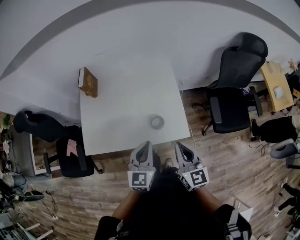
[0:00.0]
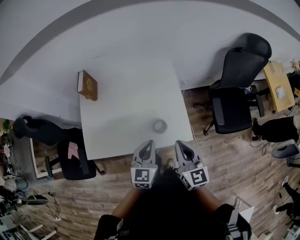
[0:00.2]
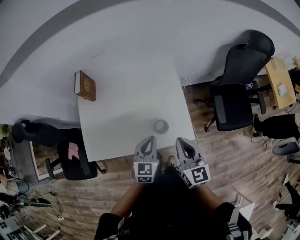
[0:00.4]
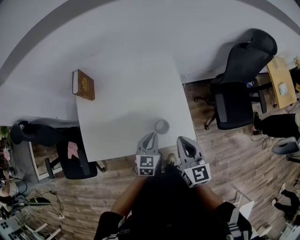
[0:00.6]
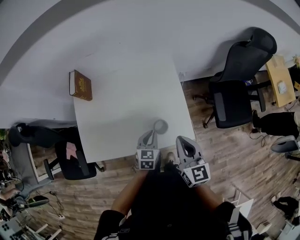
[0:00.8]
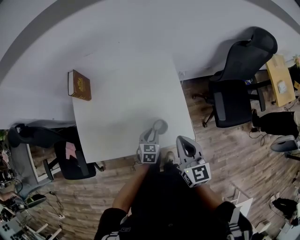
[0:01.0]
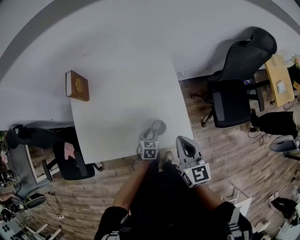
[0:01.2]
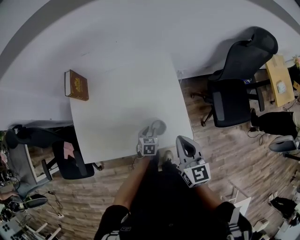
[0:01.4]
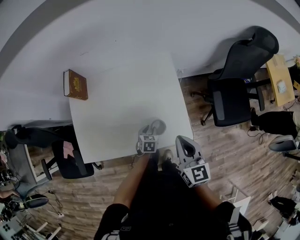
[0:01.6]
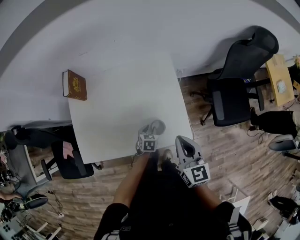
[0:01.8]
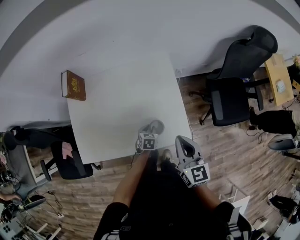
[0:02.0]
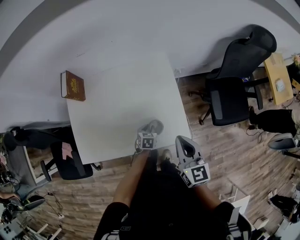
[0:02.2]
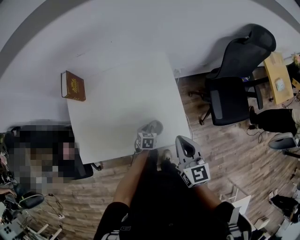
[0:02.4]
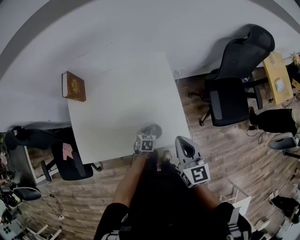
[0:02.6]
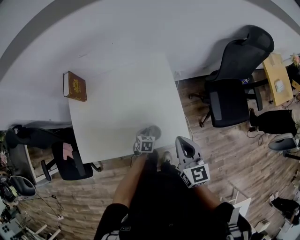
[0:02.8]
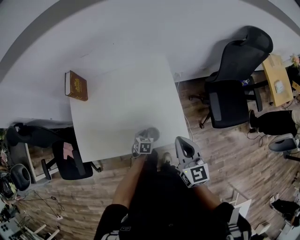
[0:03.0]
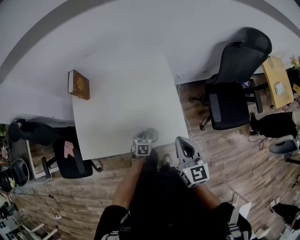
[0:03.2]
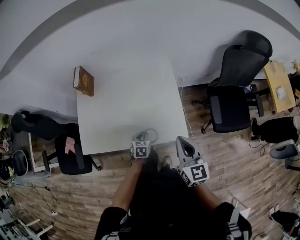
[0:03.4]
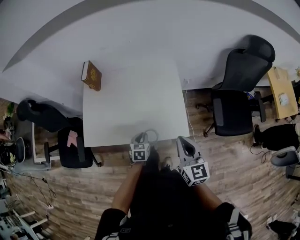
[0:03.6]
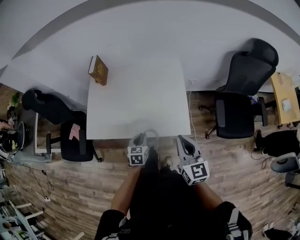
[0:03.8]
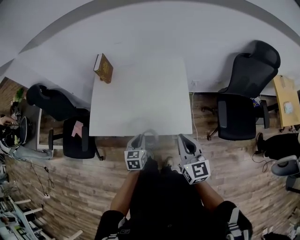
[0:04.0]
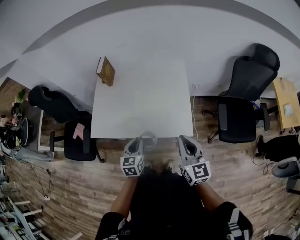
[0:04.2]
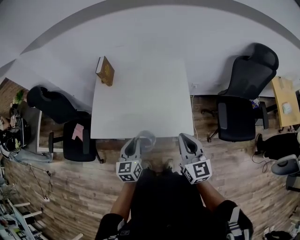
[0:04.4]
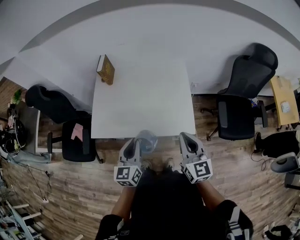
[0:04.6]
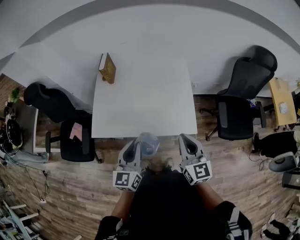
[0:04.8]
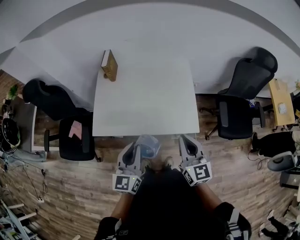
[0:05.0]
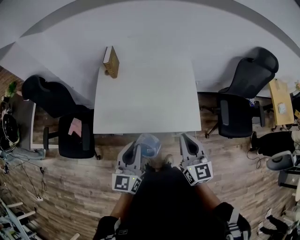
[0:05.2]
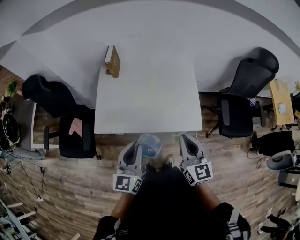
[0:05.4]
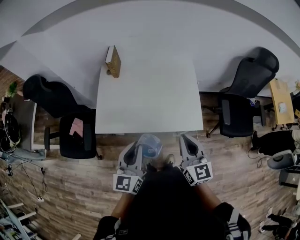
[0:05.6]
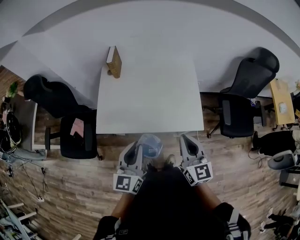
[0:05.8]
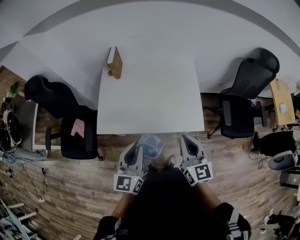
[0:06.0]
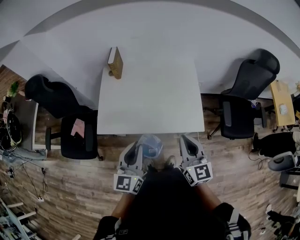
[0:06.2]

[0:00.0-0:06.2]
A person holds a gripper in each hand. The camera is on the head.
0:00.0 to 0:01.6: The left gripper is displaced downward and forward by some 35 cm, tips its fingers downward by roughly 40 degrees, and opens. The right gripper is displaced forward by about 10 cm.
0:01.6 to 0:03.2: The right gripper shifts by roughly 5 cm.
0:03.2 to 0:04.6: The left gripper travels upward and backward by roughly 35 cm, and tips its fingers upward by about 40 degrees; the right gripper travels backward and upward by some 10 cm.
0:04.6 to 0:06.2: Both grippers move to the left, roughly 10 cm.

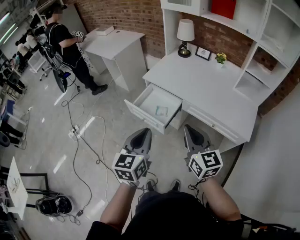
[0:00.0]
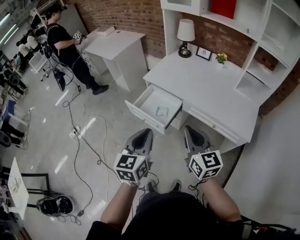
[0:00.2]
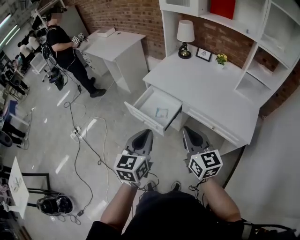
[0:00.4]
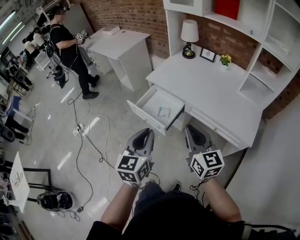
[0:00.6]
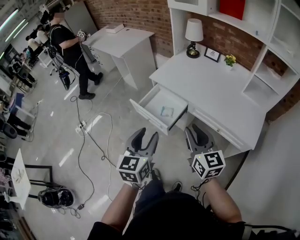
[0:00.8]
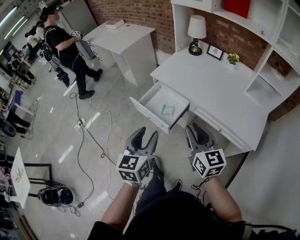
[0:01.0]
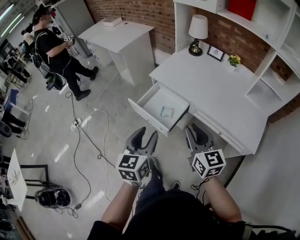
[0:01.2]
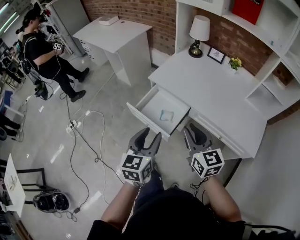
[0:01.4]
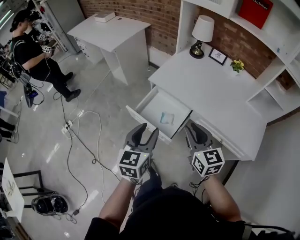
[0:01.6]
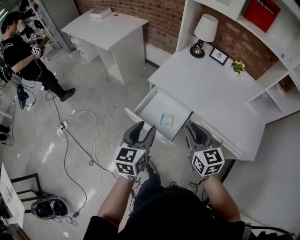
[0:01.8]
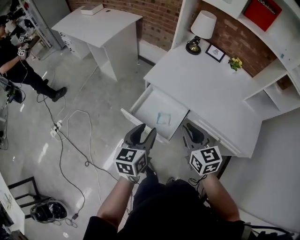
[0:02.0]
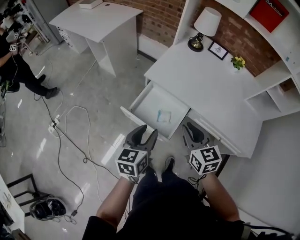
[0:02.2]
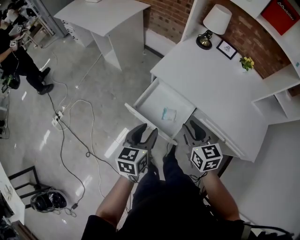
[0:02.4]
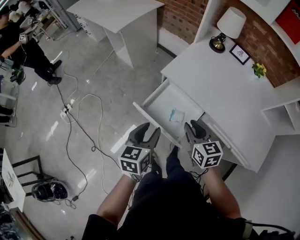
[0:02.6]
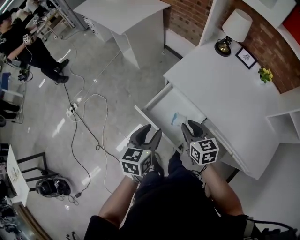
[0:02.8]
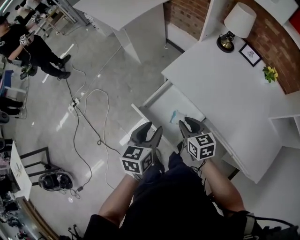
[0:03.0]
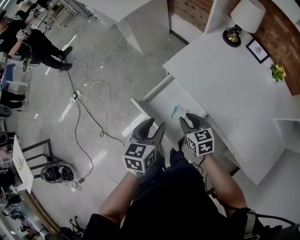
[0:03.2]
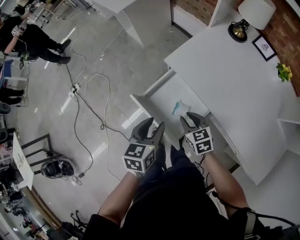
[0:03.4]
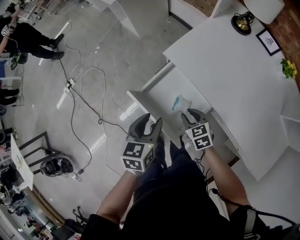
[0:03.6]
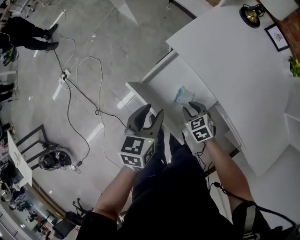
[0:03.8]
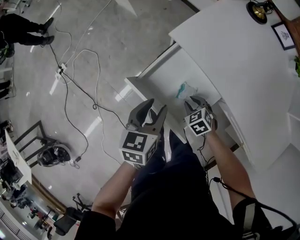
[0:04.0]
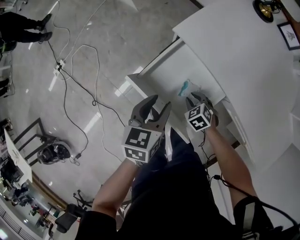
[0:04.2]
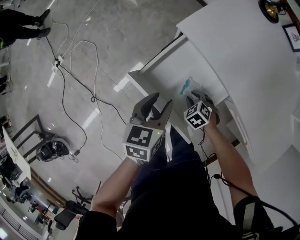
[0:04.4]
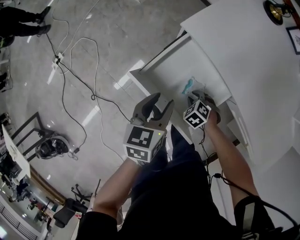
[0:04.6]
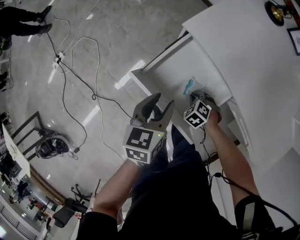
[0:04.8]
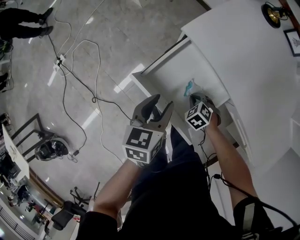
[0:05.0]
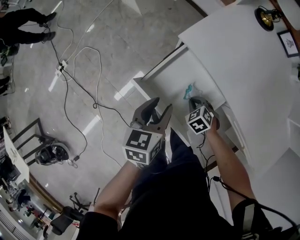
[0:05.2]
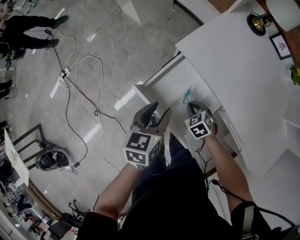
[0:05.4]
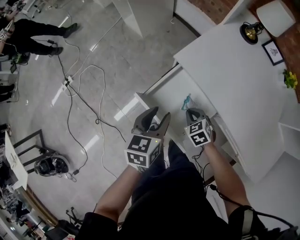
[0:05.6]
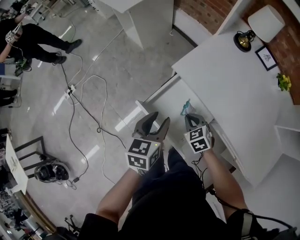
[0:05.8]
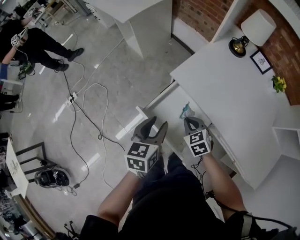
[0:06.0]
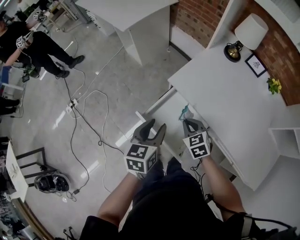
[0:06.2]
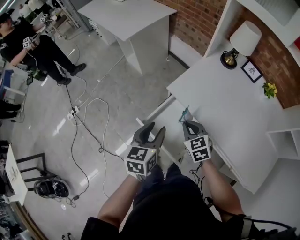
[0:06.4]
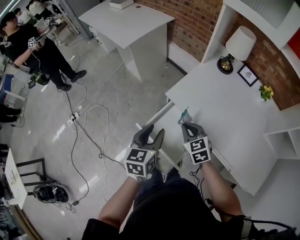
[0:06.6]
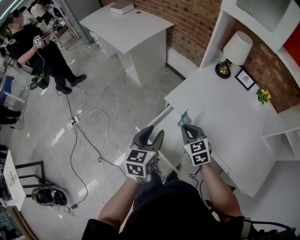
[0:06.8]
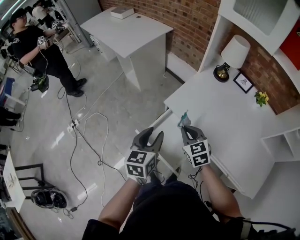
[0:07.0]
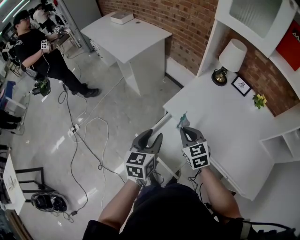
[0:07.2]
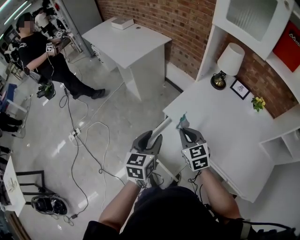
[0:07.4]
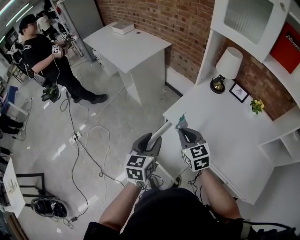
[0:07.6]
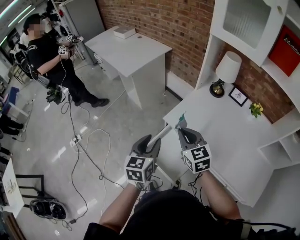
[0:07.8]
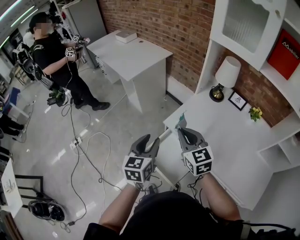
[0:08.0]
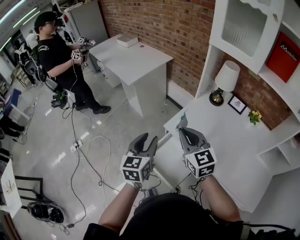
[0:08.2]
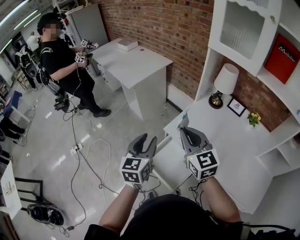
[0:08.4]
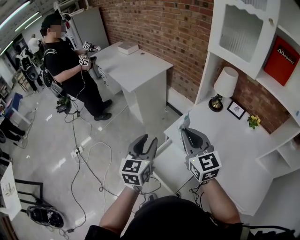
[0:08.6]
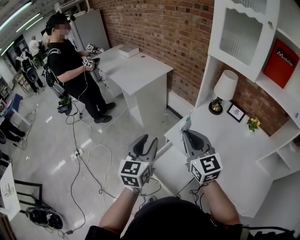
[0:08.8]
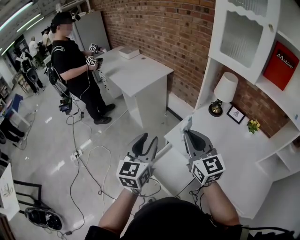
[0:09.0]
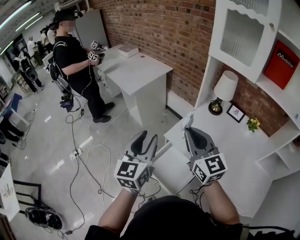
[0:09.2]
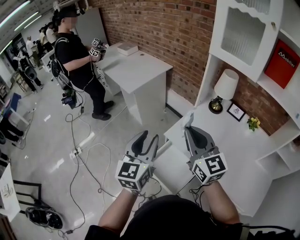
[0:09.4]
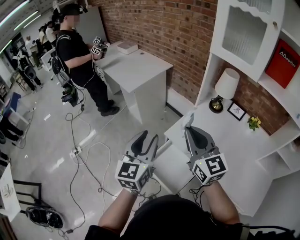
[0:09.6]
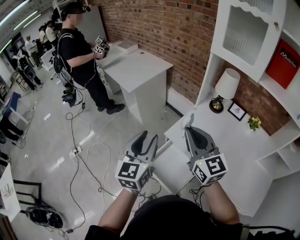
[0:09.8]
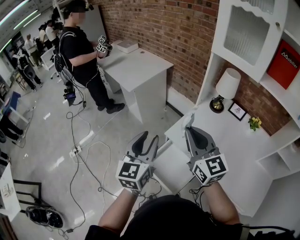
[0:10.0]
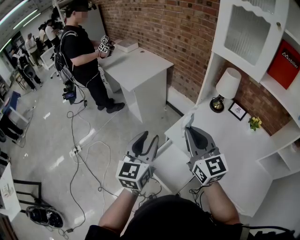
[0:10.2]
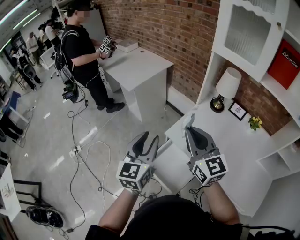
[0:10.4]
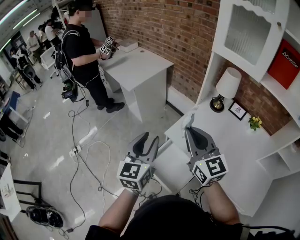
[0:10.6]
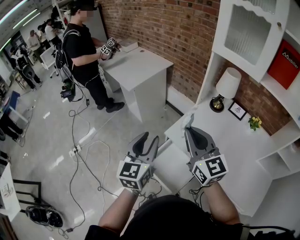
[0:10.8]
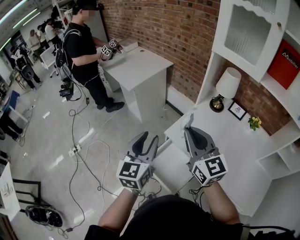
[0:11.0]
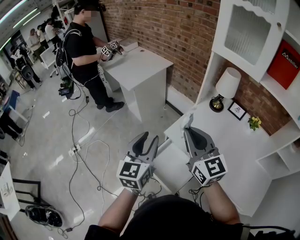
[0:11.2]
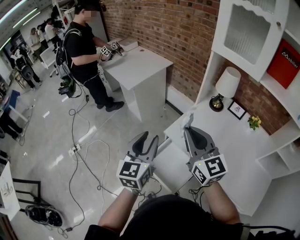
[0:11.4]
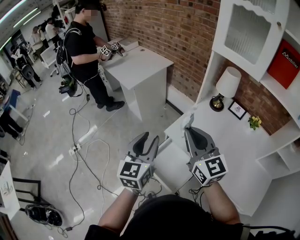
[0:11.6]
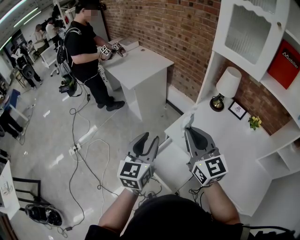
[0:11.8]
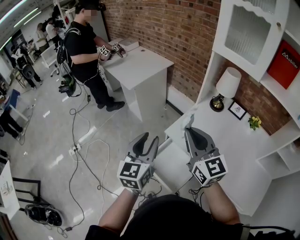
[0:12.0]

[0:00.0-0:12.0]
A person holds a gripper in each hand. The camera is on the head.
0:00.0 to 0:01.6: The grippers both shift forward by some 20 cm. The right gripper opens up, while the left gripper opens up.
0:01.6 to 0:03.0: Both grippers travel together forward and downward, approximately 20 cm. The right gripper changes its angle by some 30 degrees; the left gripper swivels roughly 20 degrees.
0:03.0 to 0:04.4: The left gripper moves downward, about 15 cm; the right gripper goes some 30 cm downward, and tilts its fingers roughly 40 degrees downward.
0:04.4 to 0:06.0: The left gripper shifts some 15 cm upward. The right gripper shifts approximately 25 cm upward, turns by roughly 30 degrees, and closes.
0:06.0 to 0:07.6: The right gripper shifts roughly 20 cm upward, and turns by roughly 30 degrees. Meanwhile the left gripper goes approximately 10 cm upward.
0:07.6 to 0:09.0: The grippers both shift upward by approximately 15 cm. The right gripper changes its angle by approximately 20 degrees.
0:09.0 to 0:12.0: The grippers stay close to where they were, moving slightly.

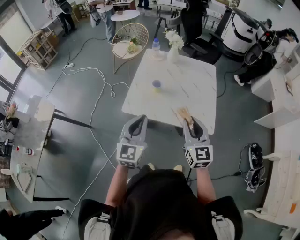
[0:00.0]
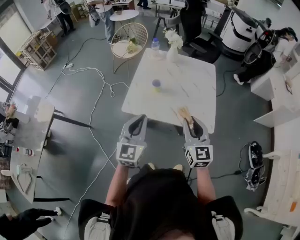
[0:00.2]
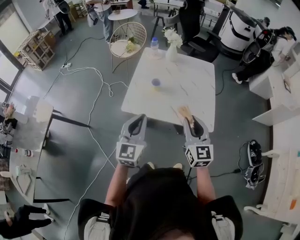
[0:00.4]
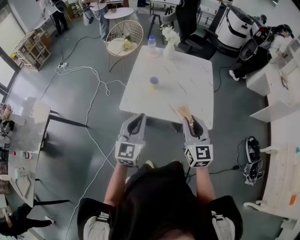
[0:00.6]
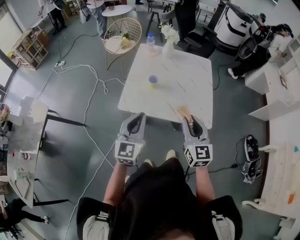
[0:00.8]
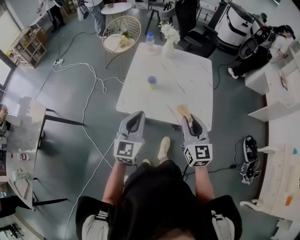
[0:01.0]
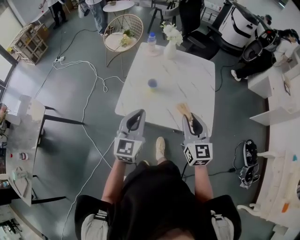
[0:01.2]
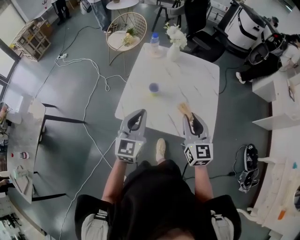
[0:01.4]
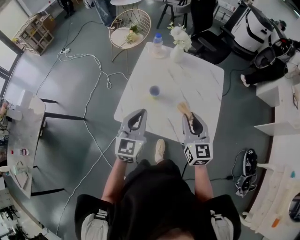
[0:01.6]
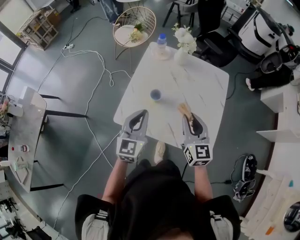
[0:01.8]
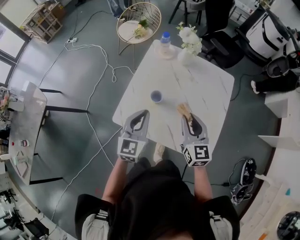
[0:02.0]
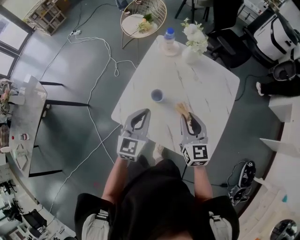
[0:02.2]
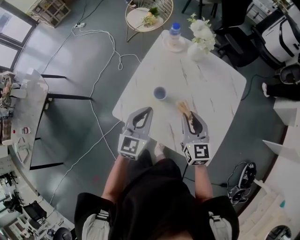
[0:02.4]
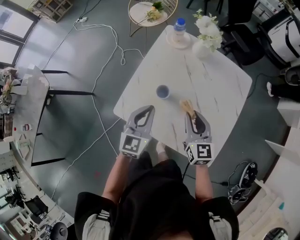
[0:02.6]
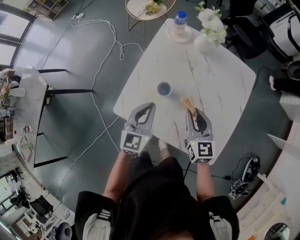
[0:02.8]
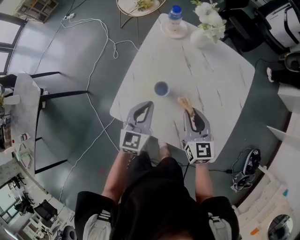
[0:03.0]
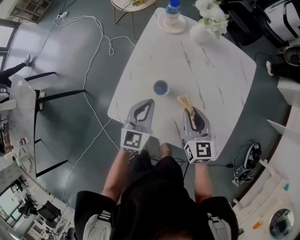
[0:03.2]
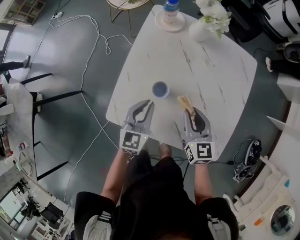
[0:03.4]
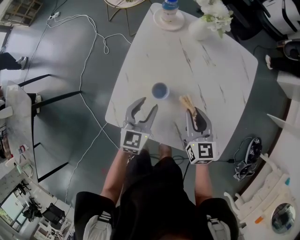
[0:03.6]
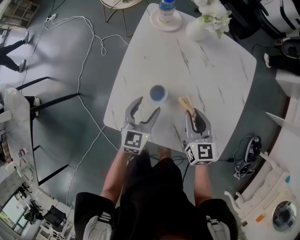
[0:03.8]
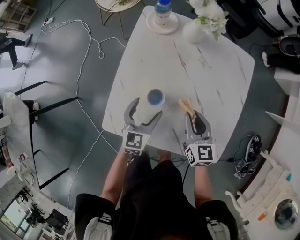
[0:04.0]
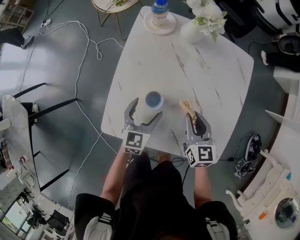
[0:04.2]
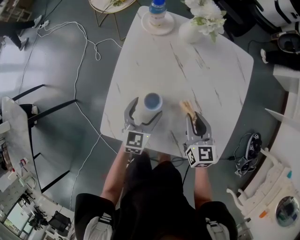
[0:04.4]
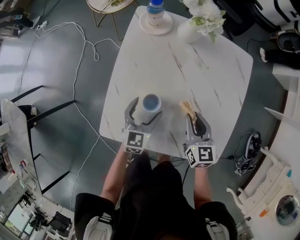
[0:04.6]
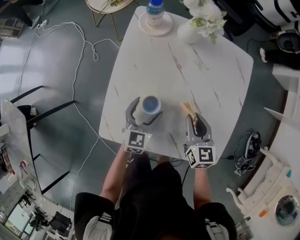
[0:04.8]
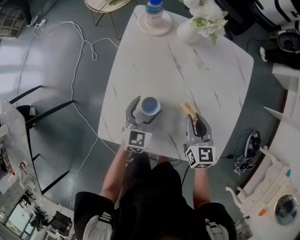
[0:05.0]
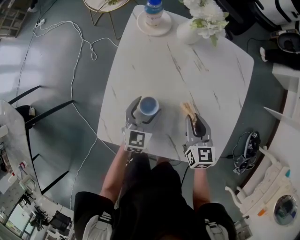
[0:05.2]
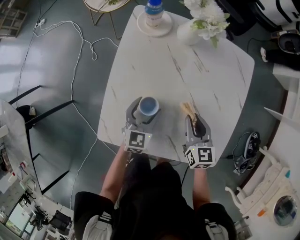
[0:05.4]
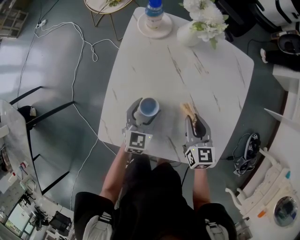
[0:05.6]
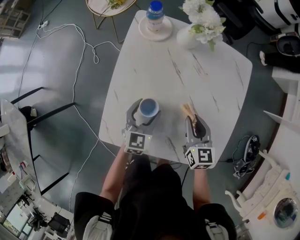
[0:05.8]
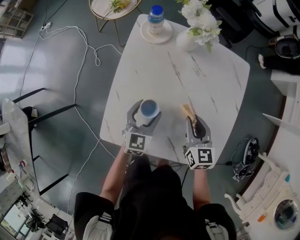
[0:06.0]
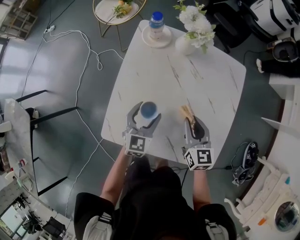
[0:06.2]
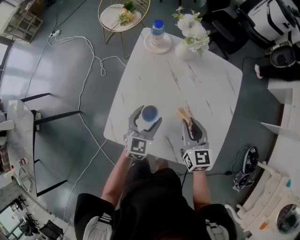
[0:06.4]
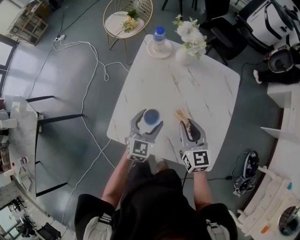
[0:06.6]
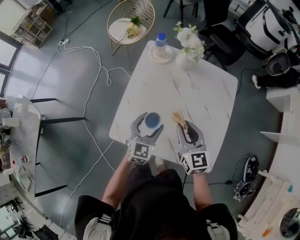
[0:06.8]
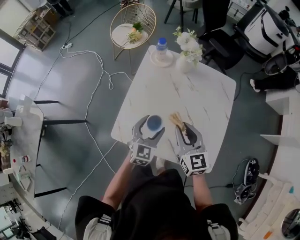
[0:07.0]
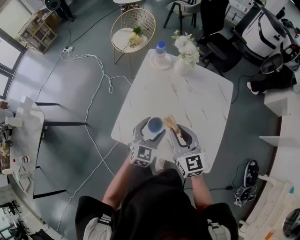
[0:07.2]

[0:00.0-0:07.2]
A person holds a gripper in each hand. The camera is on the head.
0:00.0 to 0:01.4: The grippers both shift forward by roughly 15 cm.
0:01.4 to 0:02.8: The grippers both shift forward and downward by approximately 20 cm.
0:02.8 to 0:04.4: The right gripper shifts roughly 10 cm downward. The left gripper is displaced downward and forward by approximately 15 cm, and opens its fingers.
0:04.4 to 0:05.8: The grippers stay close to where they were, moving slightly.
0:05.8 to 0:07.2: The right gripper travels upward, backward and to the left by about 20 cm, and changes its angle by about 20 degrees. Meanwhile the left gripper heads upward and backward, covering approximately 15 cm.
